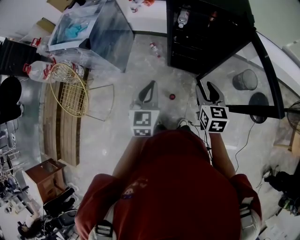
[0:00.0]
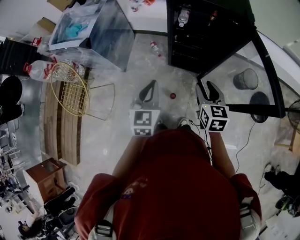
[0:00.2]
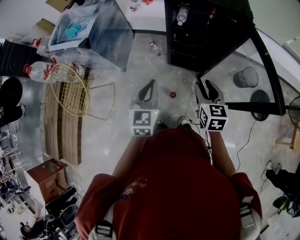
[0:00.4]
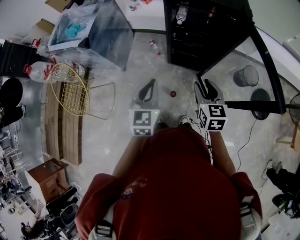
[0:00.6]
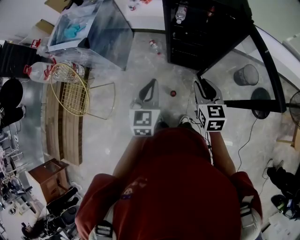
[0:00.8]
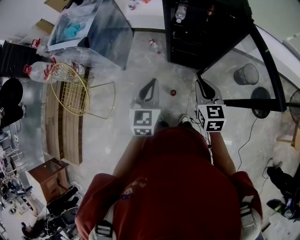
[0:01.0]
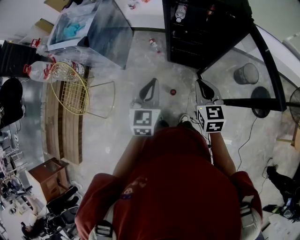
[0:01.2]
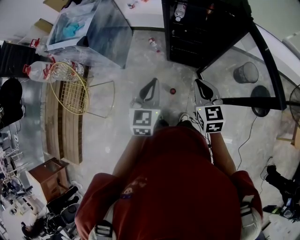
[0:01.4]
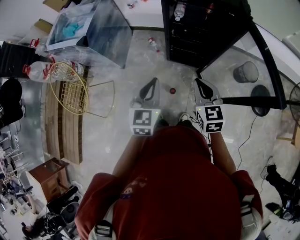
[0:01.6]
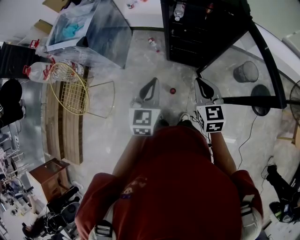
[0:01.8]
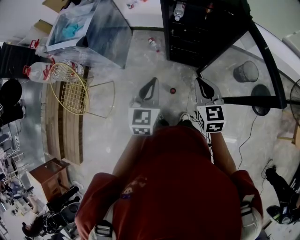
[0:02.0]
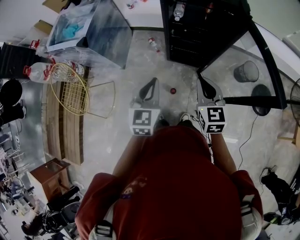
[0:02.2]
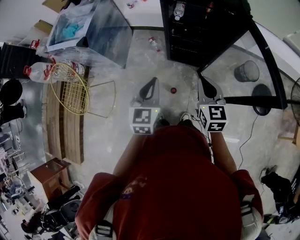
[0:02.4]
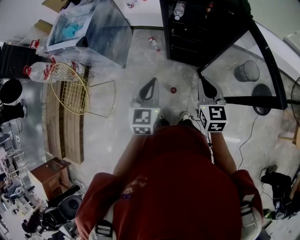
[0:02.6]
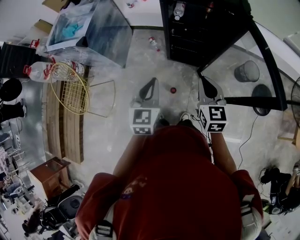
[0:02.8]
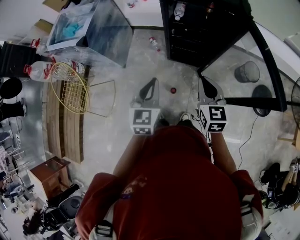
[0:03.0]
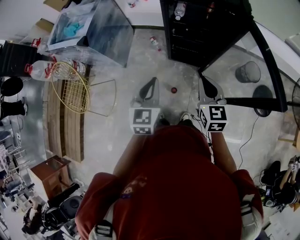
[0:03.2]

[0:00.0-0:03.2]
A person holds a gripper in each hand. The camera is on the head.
0:00.0 to 0:01.6: The right gripper closes up.
0:01.6 to 0:03.2: There are only small adjustments of the grippers.

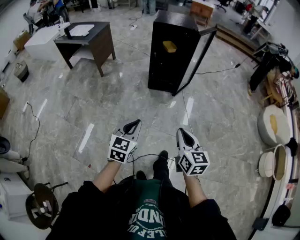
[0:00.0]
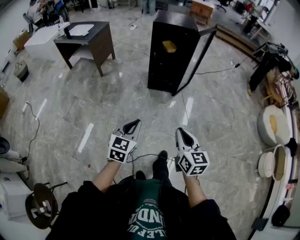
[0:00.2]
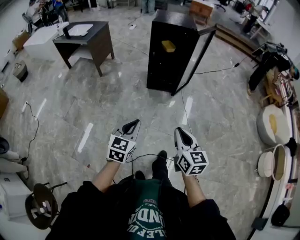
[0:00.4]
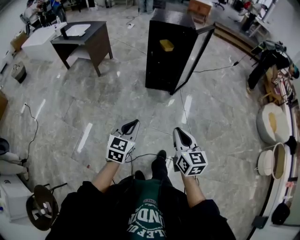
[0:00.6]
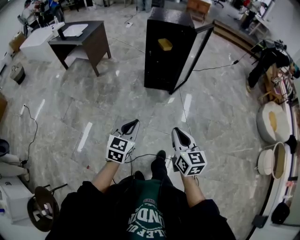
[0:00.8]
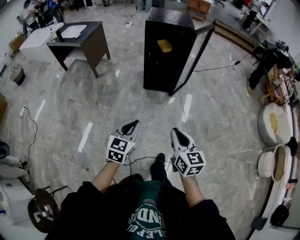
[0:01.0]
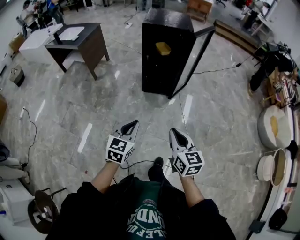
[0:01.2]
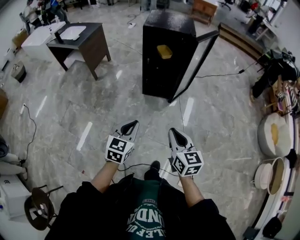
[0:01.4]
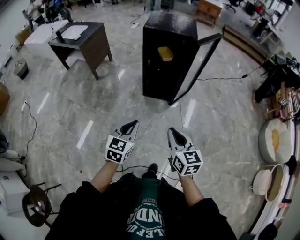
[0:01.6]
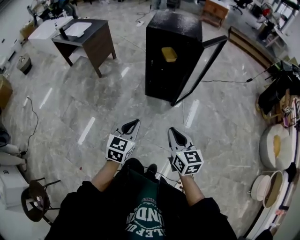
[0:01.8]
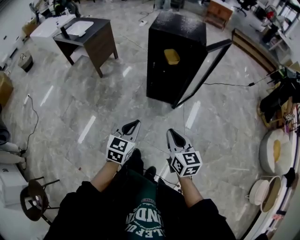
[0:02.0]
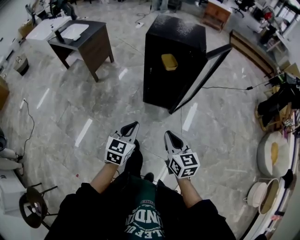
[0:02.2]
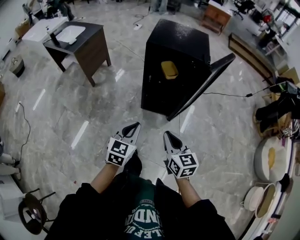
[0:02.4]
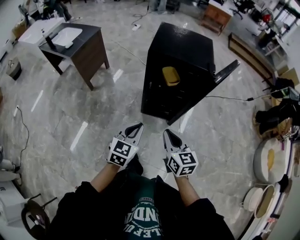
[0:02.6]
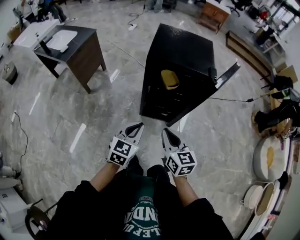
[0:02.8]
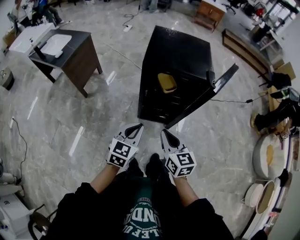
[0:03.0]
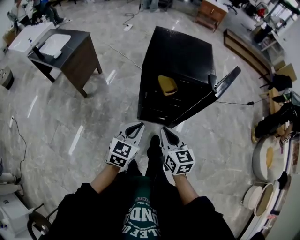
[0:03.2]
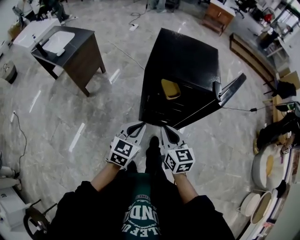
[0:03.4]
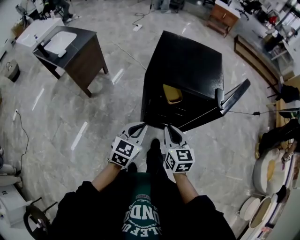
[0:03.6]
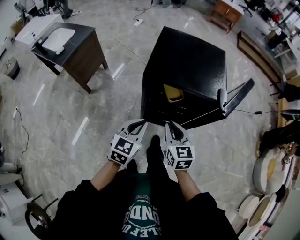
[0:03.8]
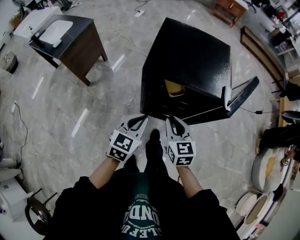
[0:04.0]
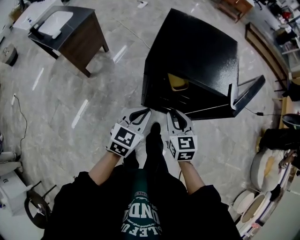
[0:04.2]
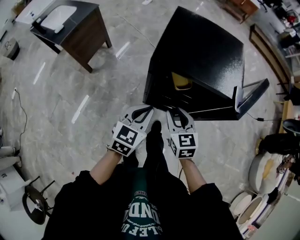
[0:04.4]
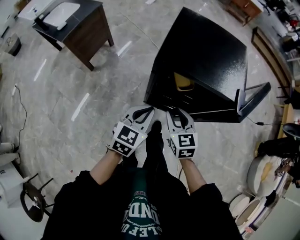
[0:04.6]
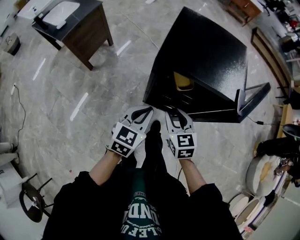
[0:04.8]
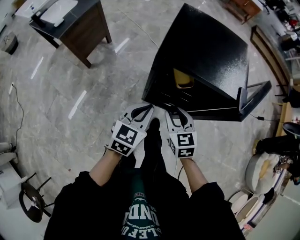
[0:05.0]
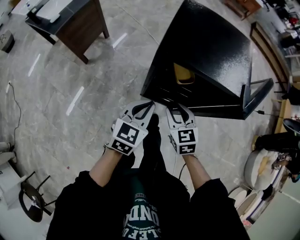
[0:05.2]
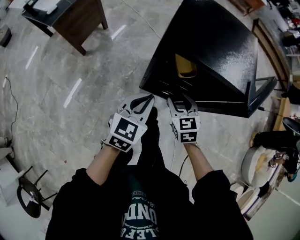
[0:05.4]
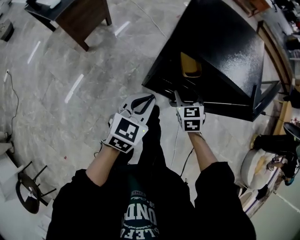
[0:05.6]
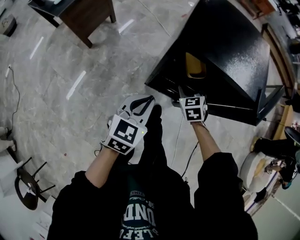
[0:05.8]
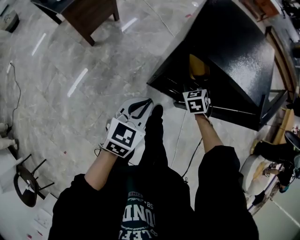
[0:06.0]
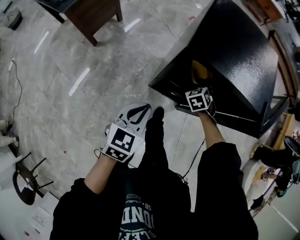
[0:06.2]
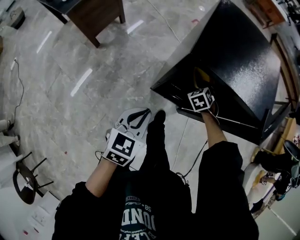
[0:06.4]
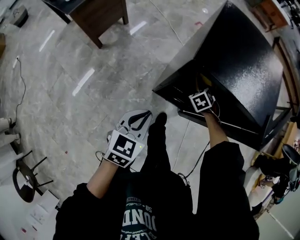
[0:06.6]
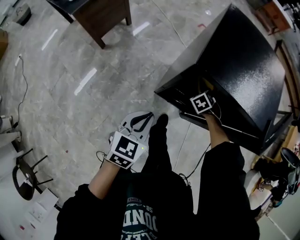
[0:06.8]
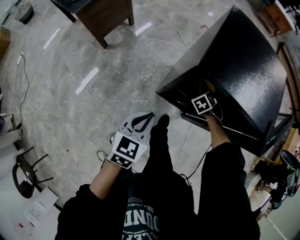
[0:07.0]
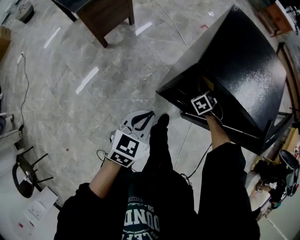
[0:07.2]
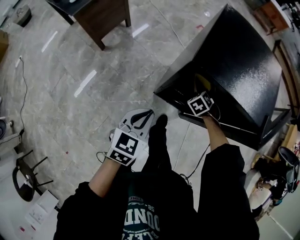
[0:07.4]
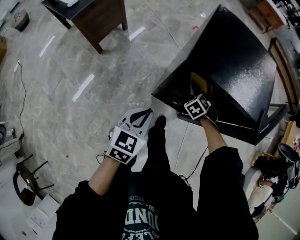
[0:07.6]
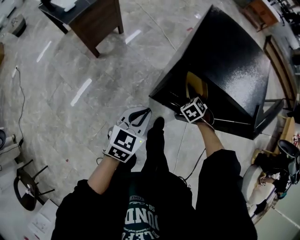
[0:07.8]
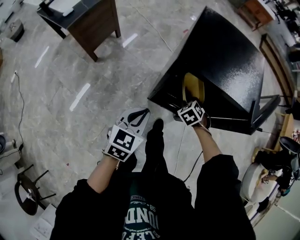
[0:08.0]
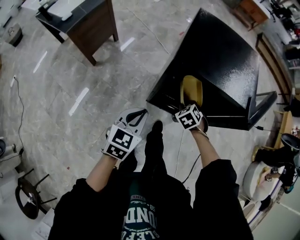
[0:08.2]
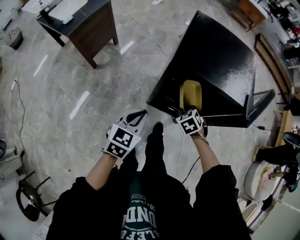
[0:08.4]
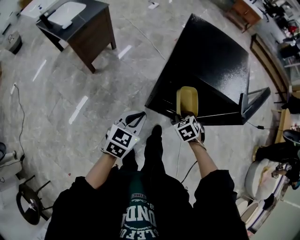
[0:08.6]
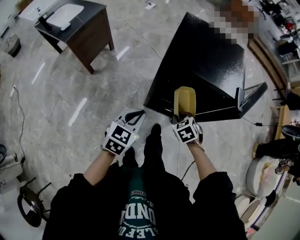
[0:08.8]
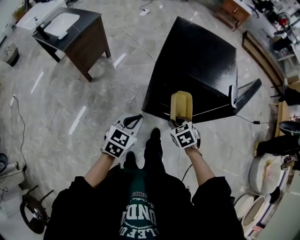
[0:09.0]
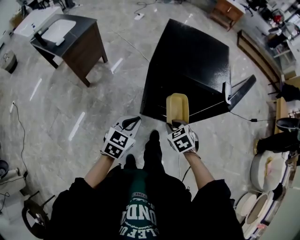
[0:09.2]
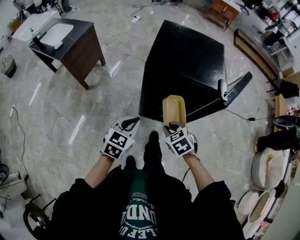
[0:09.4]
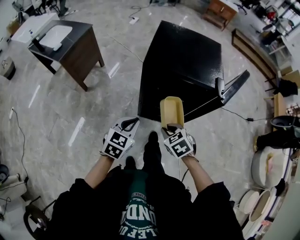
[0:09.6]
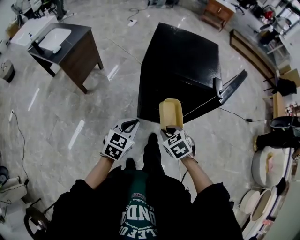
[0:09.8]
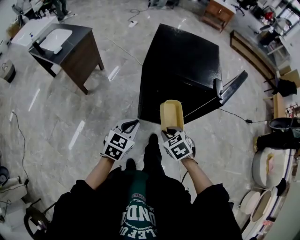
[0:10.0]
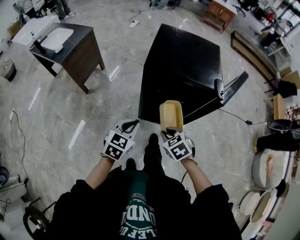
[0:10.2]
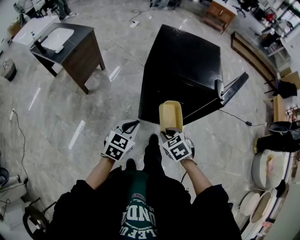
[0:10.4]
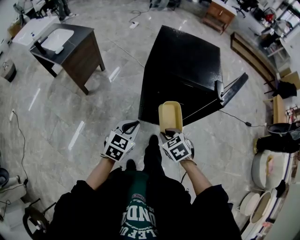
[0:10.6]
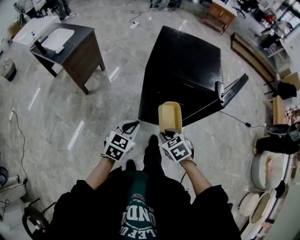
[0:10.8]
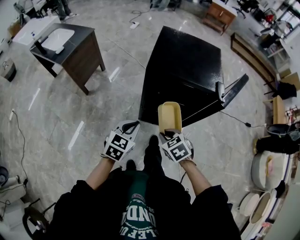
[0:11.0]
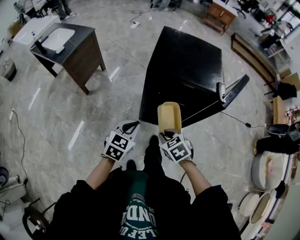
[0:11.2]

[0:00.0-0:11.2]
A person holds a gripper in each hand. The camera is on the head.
0:00.0 to 0:01.6: The right gripper goes approximately 20 cm forward; the left gripper shifts approximately 25 cm forward and to the right.
0:01.6 to 0:03.2: The grippers both shift forward by roughly 40 cm.
0:03.2 to 0:04.8: The right gripper goes roughly 15 cm forward and downward. Meanwhile the left gripper travels forward by some 10 cm.
0:04.8 to 0:06.4: The left gripper is displaced downward and to the left by roughly 10 cm. Meanwhile the right gripper travels downward and forward by some 25 cm, and tilts its fingers roughly 30 degrees downward.
0:06.4 to 0:08.0: The right gripper changes place by about 10 cm, and closes its fingers.
0:08.0 to 0:09.6: The right gripper travels backward and upward by some 25 cm, and rotates roughly 20 degrees; the left gripper heads backward, covering about 5 cm.
0:09.6 to 0:11.2: The grippers make only small movements.

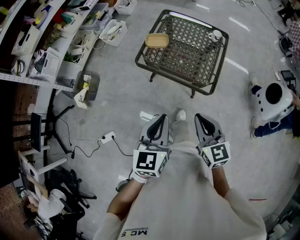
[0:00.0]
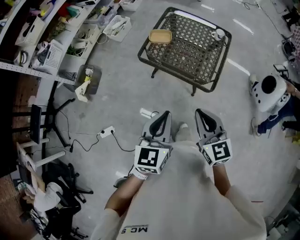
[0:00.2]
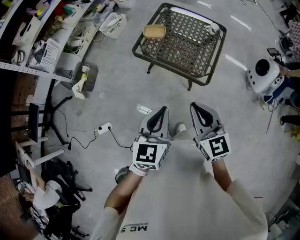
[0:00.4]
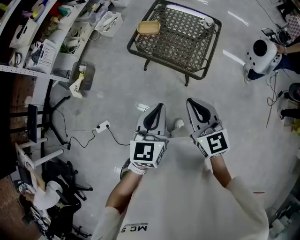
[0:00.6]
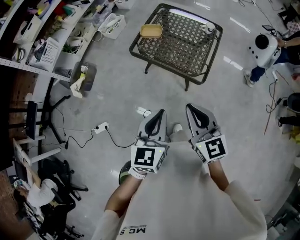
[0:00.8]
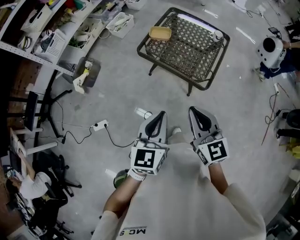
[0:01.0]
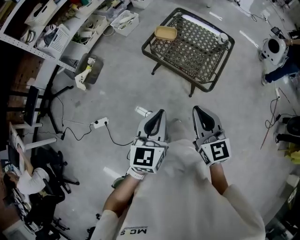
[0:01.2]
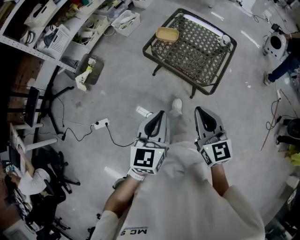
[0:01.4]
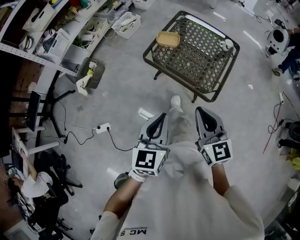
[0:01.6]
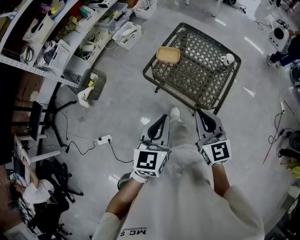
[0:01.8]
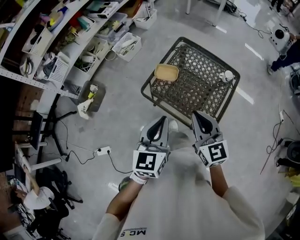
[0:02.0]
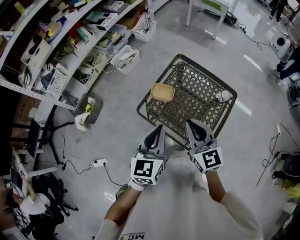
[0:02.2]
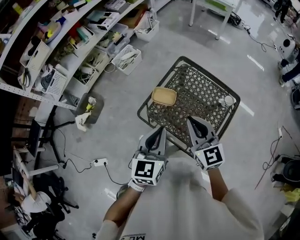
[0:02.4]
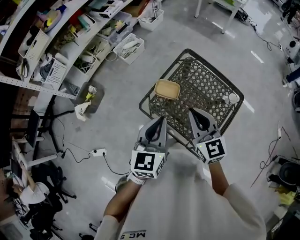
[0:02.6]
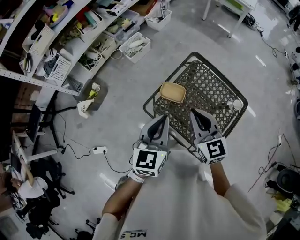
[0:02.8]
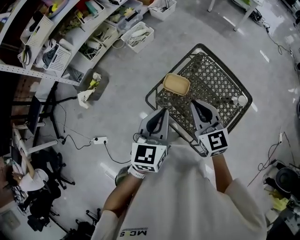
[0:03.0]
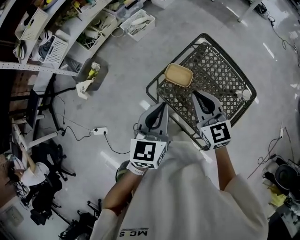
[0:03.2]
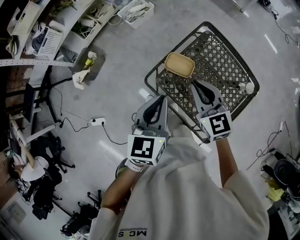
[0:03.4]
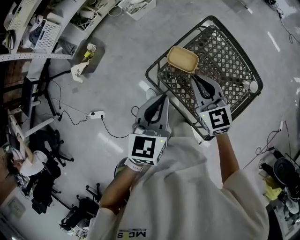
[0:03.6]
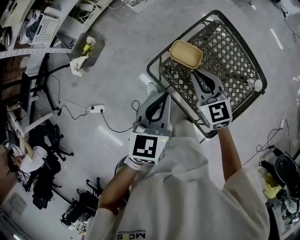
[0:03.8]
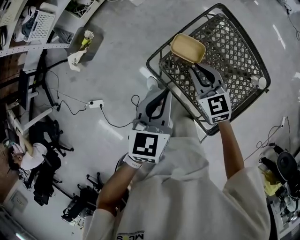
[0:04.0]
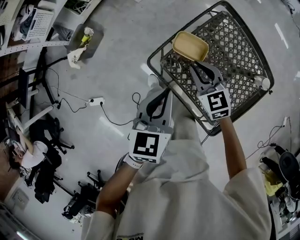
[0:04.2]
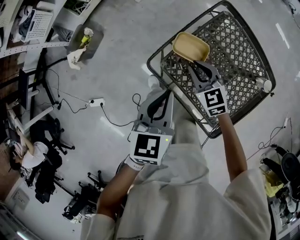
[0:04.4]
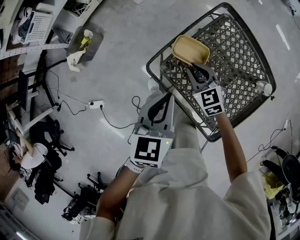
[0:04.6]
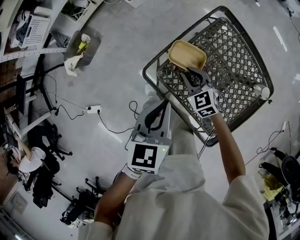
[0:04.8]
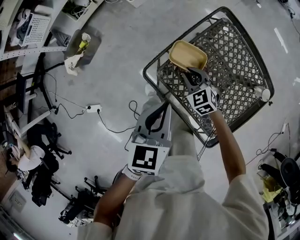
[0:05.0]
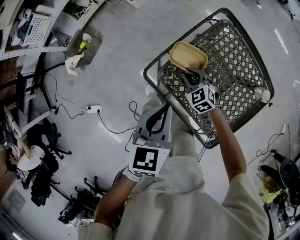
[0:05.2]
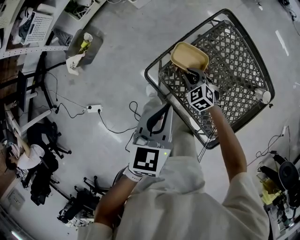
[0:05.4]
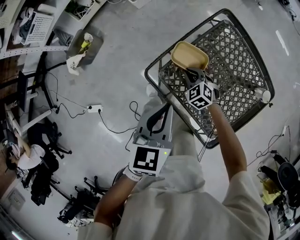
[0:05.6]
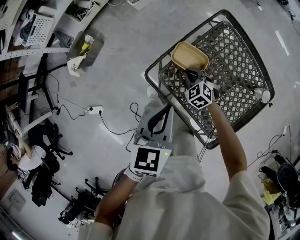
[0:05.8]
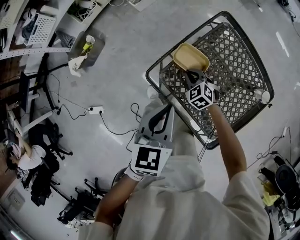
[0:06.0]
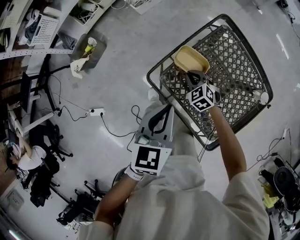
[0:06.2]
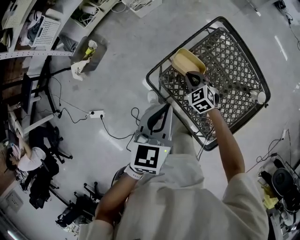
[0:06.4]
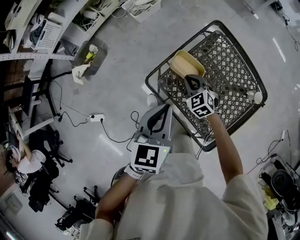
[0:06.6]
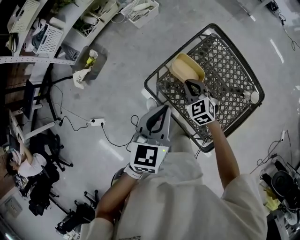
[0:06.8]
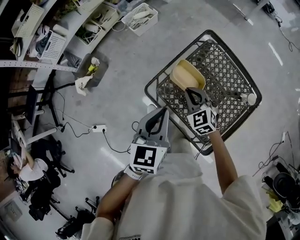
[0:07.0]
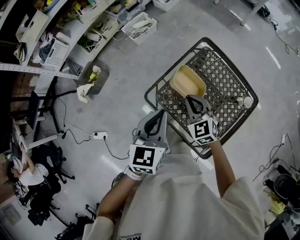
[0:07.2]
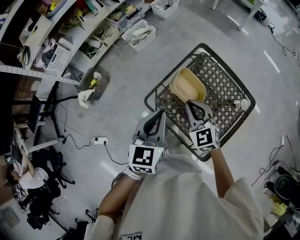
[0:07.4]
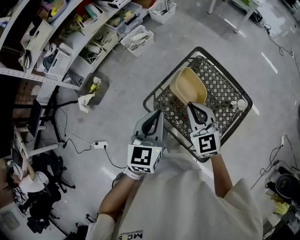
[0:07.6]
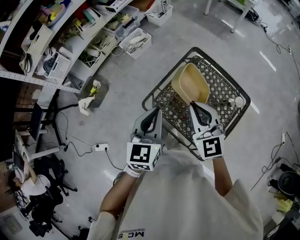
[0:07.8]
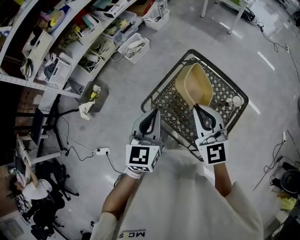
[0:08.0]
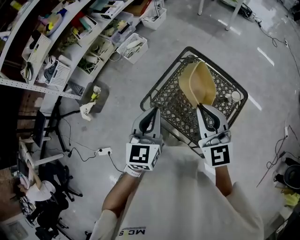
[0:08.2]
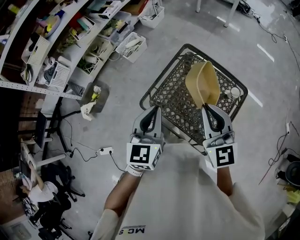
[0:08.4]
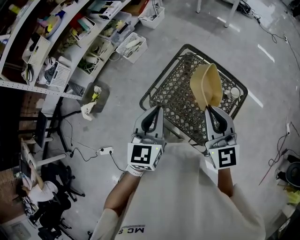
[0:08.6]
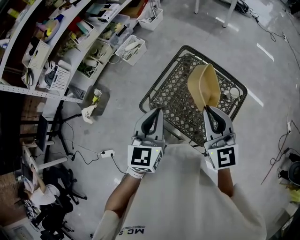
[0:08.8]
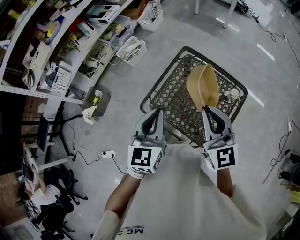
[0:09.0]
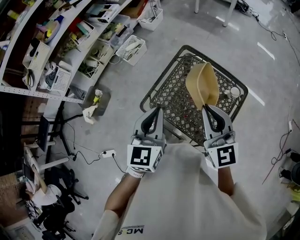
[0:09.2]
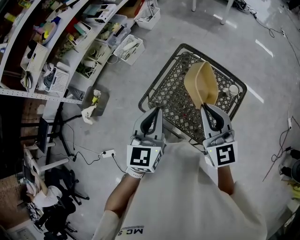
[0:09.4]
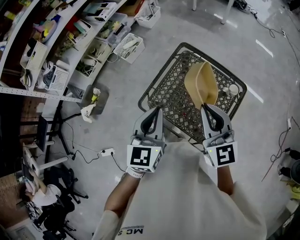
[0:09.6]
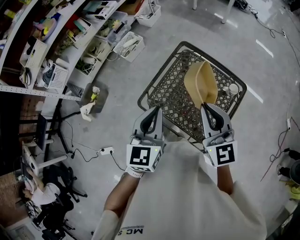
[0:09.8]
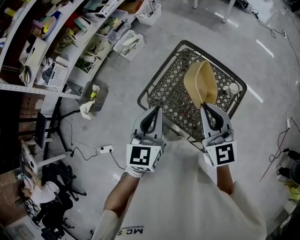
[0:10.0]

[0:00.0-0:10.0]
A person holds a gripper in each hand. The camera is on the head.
0:01.4 to 0:02.8: The grippers both shift forward by about 40 cm.
0:02.8 to 0:04.2: The right gripper moves downward, approximately 20 cm, and swivels approximately 20 degrees, while the left gripper shifts about 15 cm downward.
0:04.2 to 0:05.8: The right gripper moves downward, about 15 cm, and rotates some 30 degrees.
0:05.8 to 0:07.2: The left gripper shifts approximately 10 cm upward; the right gripper shifts approximately 25 cm upward, and rotates about 20 degrees.
0:07.2 to 0:08.6: The left gripper shifts about 10 cm upward and to the right, while the right gripper travels upward, to the right and backward by approximately 25 cm, and swivels some 40 degrees.
0:08.6 to 0:10.0: Both grippers stay about where they are.
